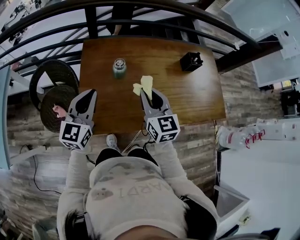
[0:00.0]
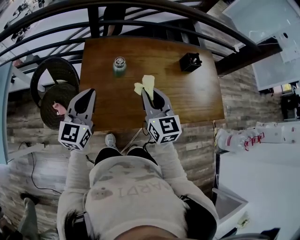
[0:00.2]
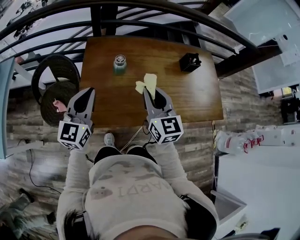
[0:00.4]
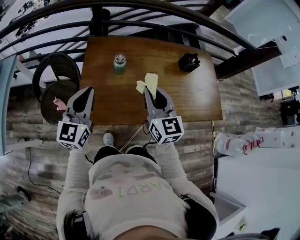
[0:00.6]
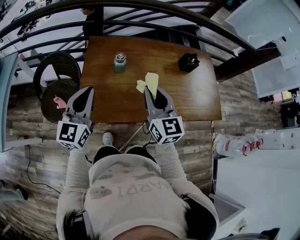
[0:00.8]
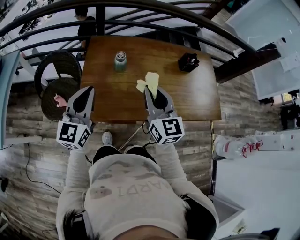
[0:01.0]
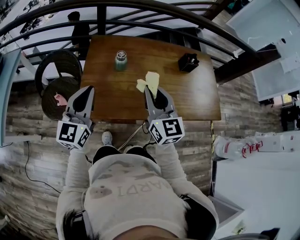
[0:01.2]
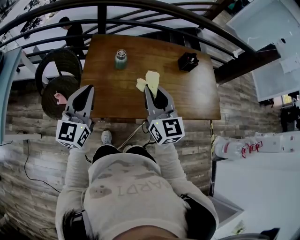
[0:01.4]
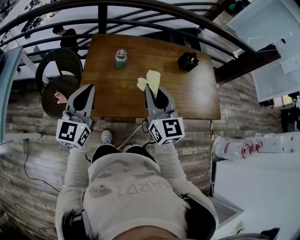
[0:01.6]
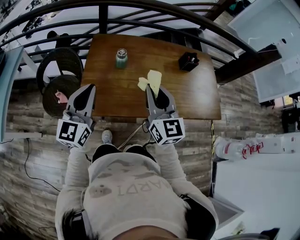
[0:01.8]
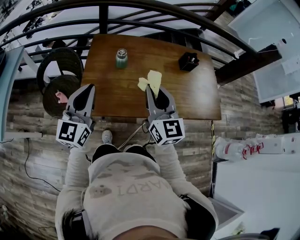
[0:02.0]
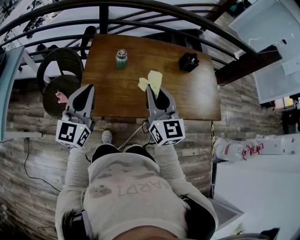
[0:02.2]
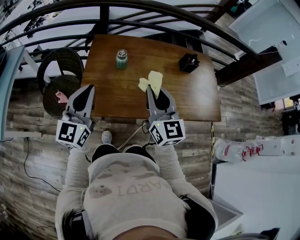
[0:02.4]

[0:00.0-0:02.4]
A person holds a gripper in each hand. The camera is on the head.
0.0 to 1.2 s: The left gripper travels backward by about 10 cm, while the right gripper shifts roughly 10 cm backward and upward.
1.2 to 2.4 s: There are only small adjustments of the grippers.

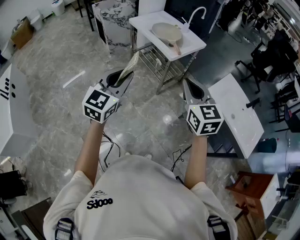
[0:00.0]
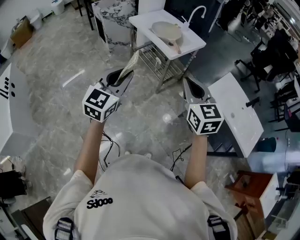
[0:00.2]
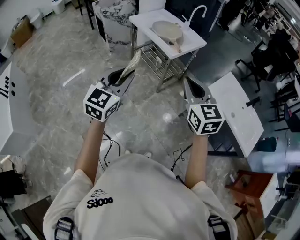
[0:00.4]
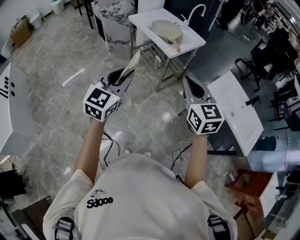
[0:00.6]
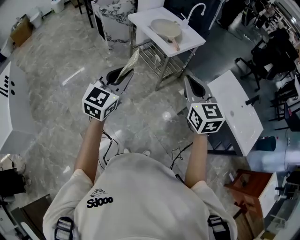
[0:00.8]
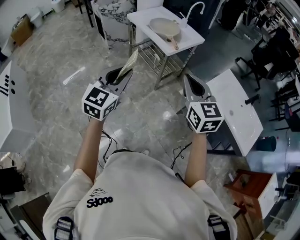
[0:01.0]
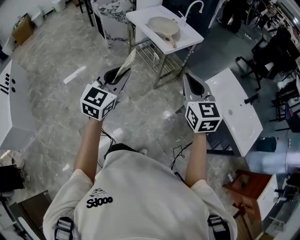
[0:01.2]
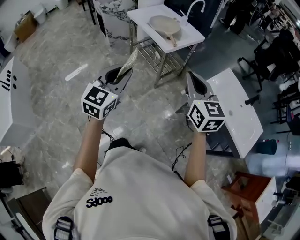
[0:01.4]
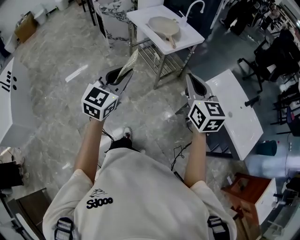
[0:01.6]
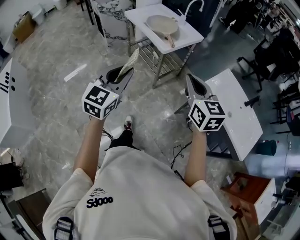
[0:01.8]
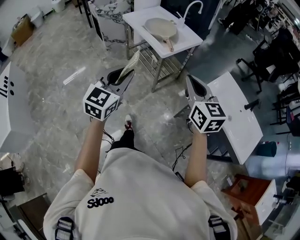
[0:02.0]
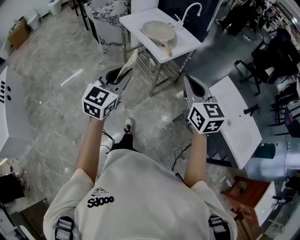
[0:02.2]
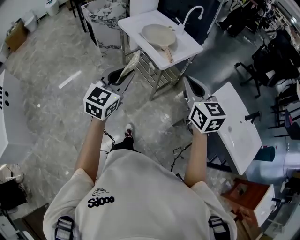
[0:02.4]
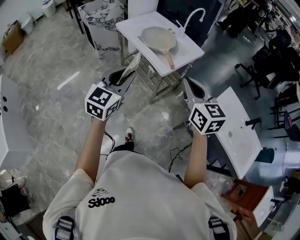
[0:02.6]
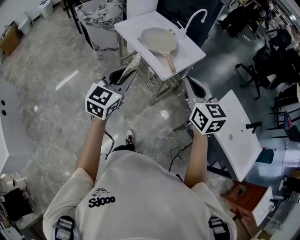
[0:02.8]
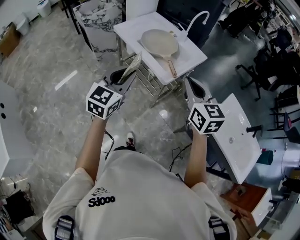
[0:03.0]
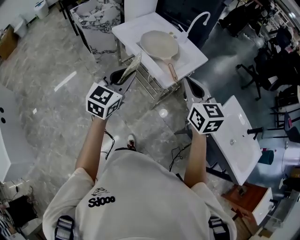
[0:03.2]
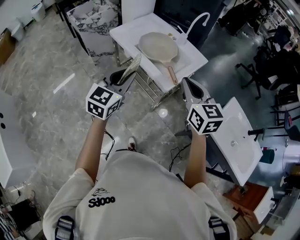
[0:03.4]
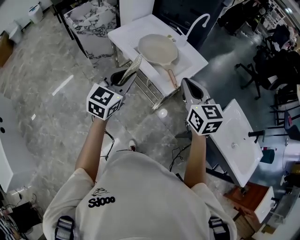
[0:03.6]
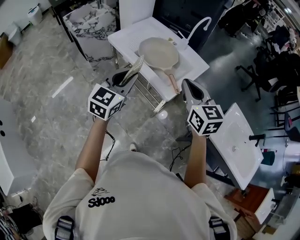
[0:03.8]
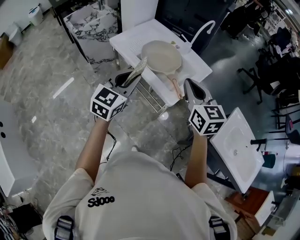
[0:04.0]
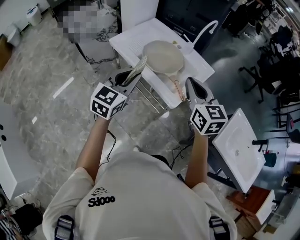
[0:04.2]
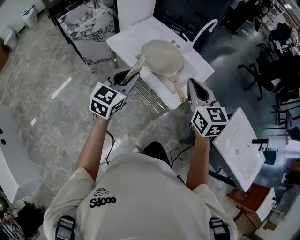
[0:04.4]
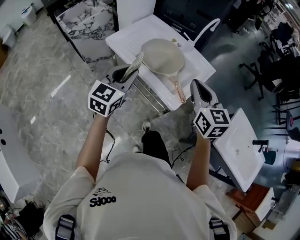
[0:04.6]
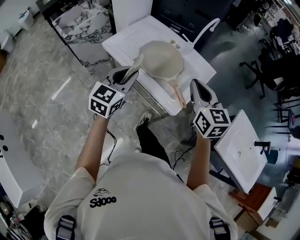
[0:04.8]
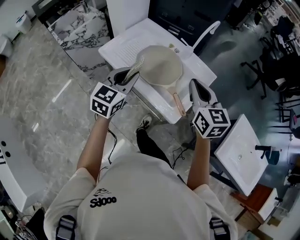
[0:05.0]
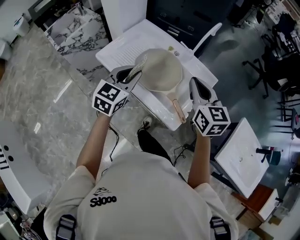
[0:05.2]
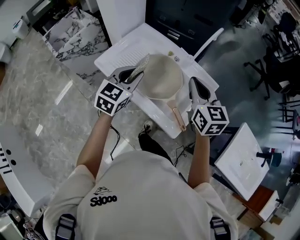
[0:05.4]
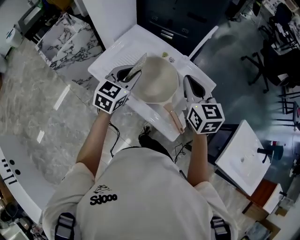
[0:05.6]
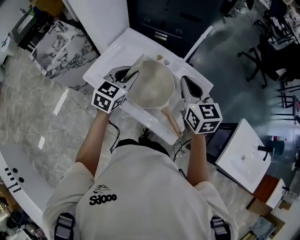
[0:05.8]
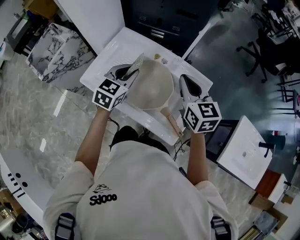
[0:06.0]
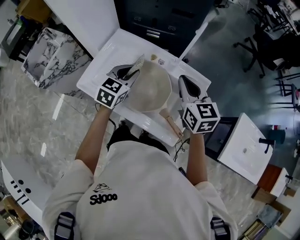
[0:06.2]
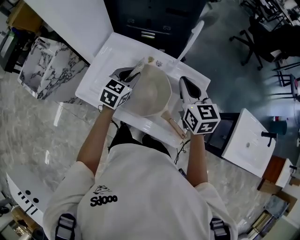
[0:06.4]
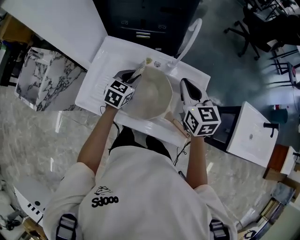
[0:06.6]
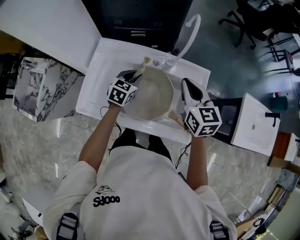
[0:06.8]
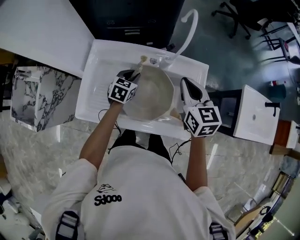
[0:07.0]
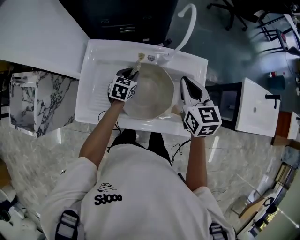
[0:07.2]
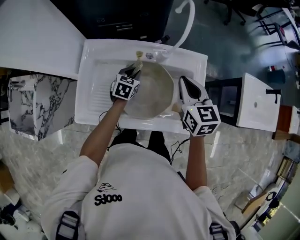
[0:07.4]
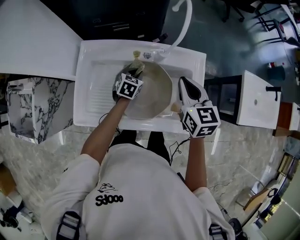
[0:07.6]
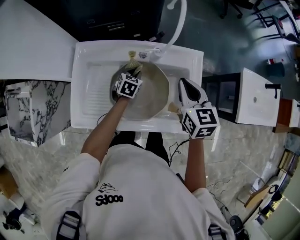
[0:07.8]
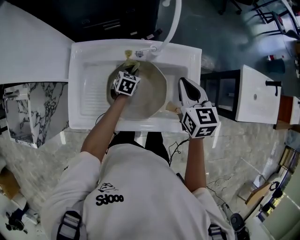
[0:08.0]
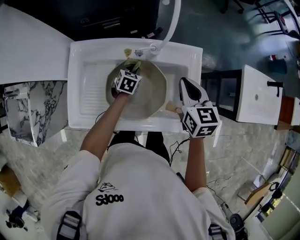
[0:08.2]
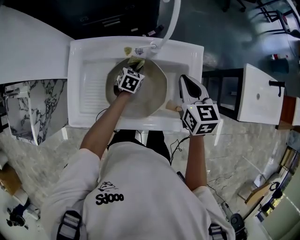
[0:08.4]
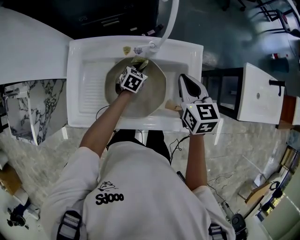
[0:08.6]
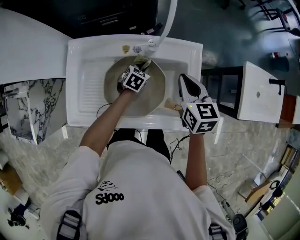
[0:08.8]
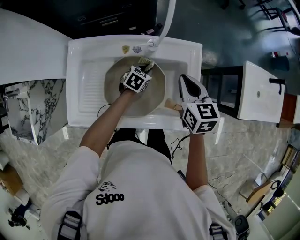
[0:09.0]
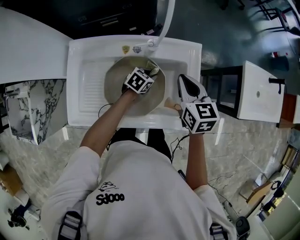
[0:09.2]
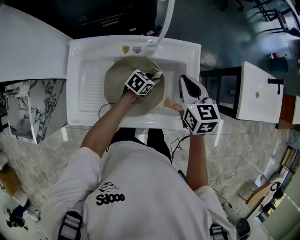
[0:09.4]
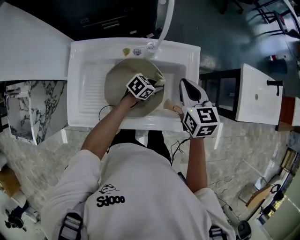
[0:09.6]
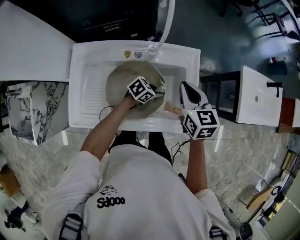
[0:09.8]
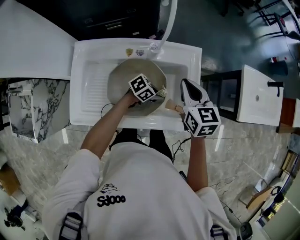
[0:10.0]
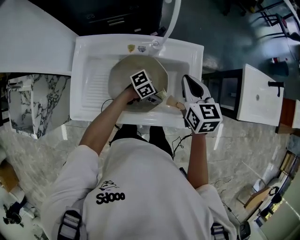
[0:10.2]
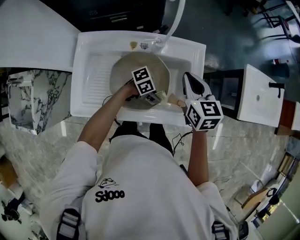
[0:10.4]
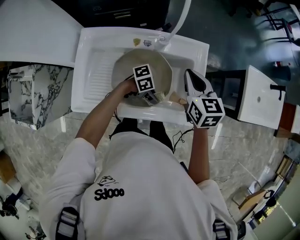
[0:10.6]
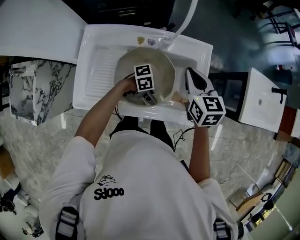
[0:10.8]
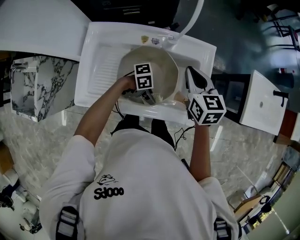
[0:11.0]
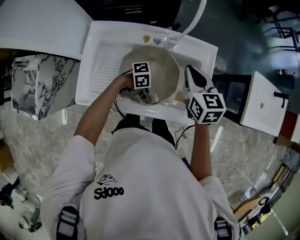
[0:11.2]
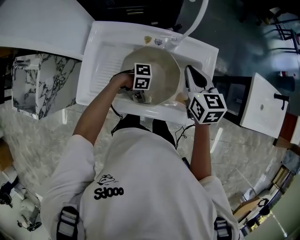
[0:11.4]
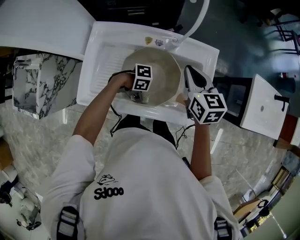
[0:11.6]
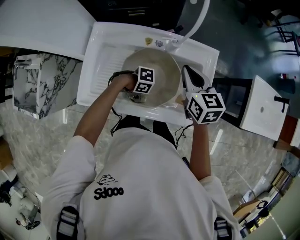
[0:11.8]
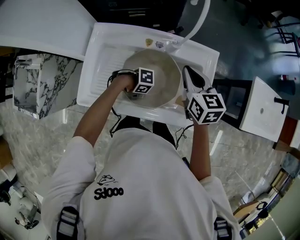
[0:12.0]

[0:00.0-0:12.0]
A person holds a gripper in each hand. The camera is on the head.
0.0 to 1.6 s: Both grippers travel together to the right, some 5 cm.
1.6 to 3.0 s: The two grippers go roughly 25 cm forward.
3.0 to 4.4 s: The grippers both shift forward by roughly 20 cm.
4.4 to 6.0 s: Both grippers travel together forward, some 25 cm.
6.0 to 7.6 s: The right gripper travels downward by roughly 5 cm, and swivels approximately 30 degrees, while the left gripper is displaced downward by roughly 25 cm, and turns by about 30 degrees.
7.6 to 9.0 s: The left gripper moves to the right, roughly 10 cm. Meanwhile the right gripper moves roughly 5 cm.
9.0 to 10.4 s: The left gripper changes place by some 20 cm, and turns by about 60 degrees.
10.4 to 12.0 s: The left gripper ends up roughly 15 cm from where it was, and changes its angle by roughly 40 degrees; the right gripper shifts by about 5 cm.

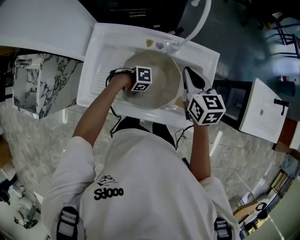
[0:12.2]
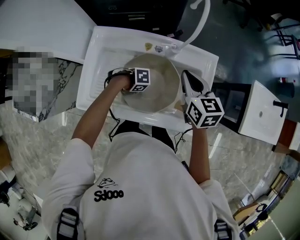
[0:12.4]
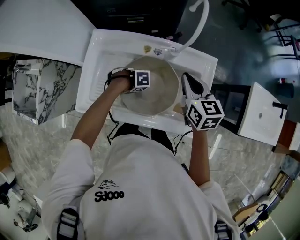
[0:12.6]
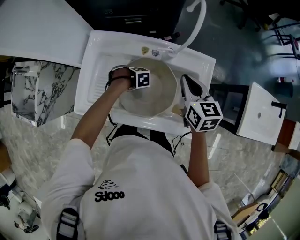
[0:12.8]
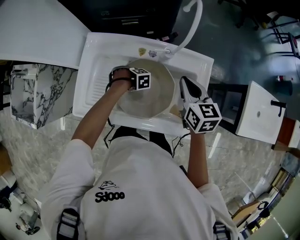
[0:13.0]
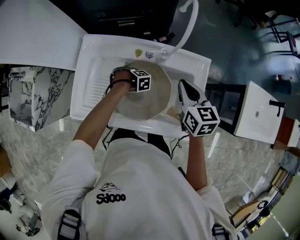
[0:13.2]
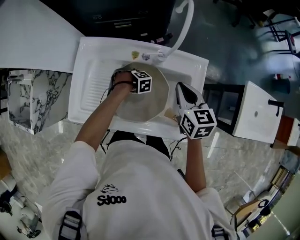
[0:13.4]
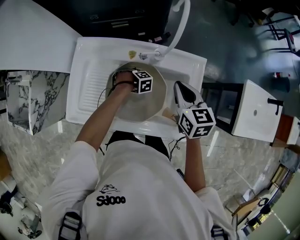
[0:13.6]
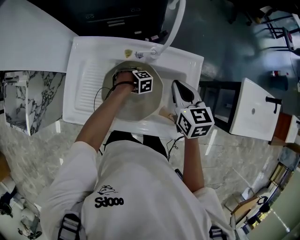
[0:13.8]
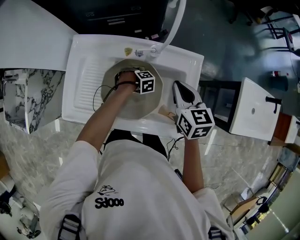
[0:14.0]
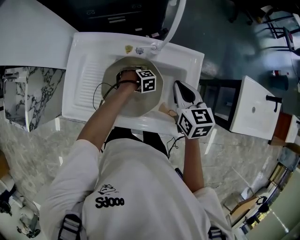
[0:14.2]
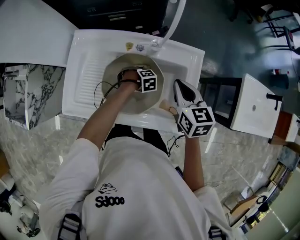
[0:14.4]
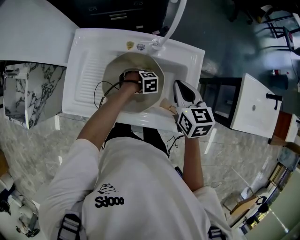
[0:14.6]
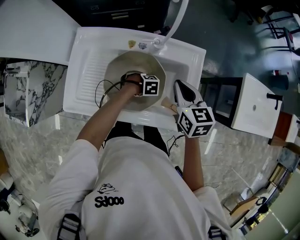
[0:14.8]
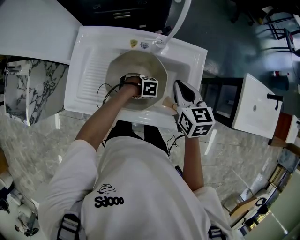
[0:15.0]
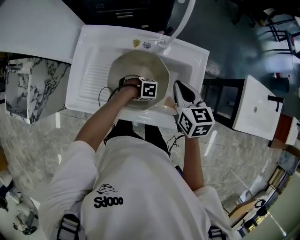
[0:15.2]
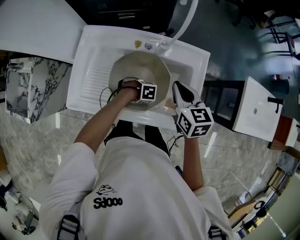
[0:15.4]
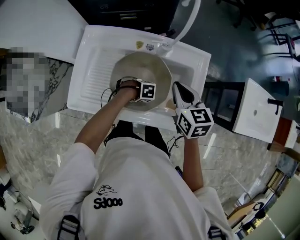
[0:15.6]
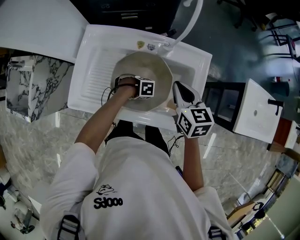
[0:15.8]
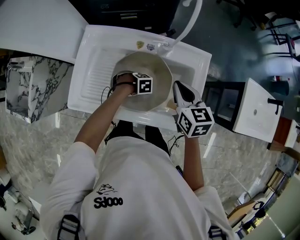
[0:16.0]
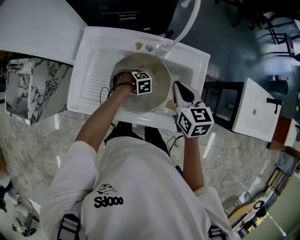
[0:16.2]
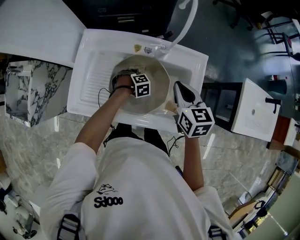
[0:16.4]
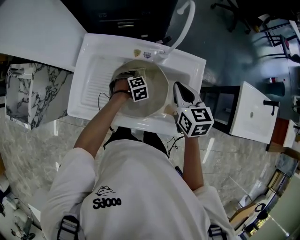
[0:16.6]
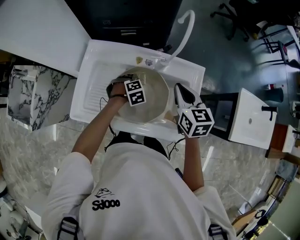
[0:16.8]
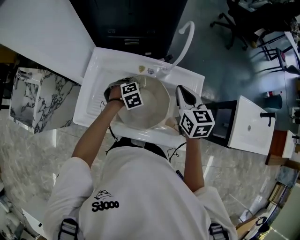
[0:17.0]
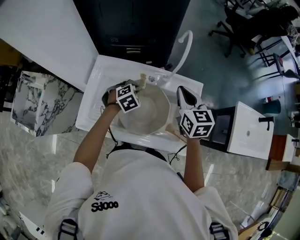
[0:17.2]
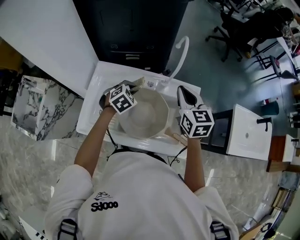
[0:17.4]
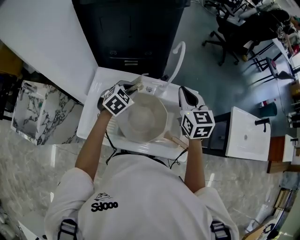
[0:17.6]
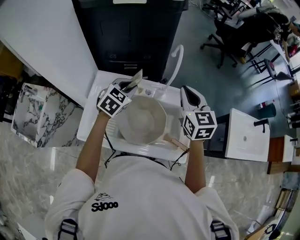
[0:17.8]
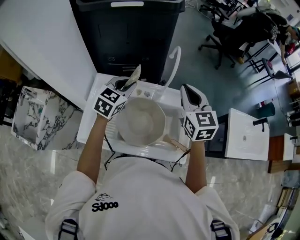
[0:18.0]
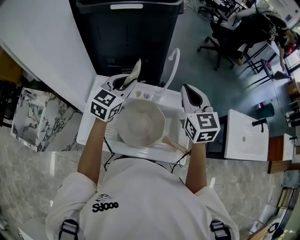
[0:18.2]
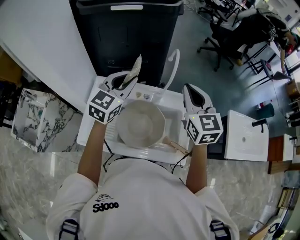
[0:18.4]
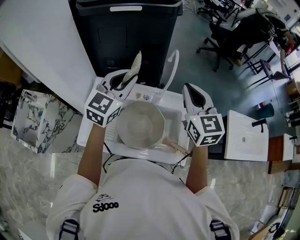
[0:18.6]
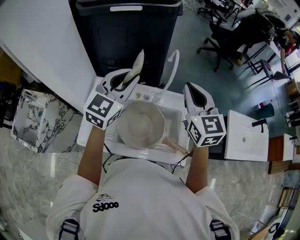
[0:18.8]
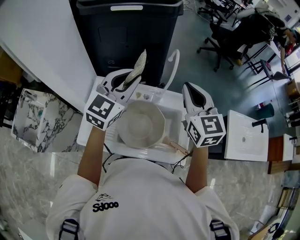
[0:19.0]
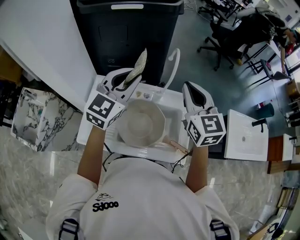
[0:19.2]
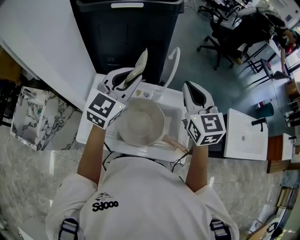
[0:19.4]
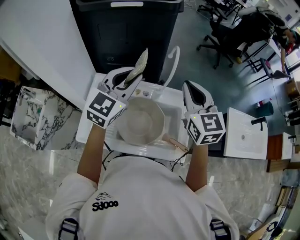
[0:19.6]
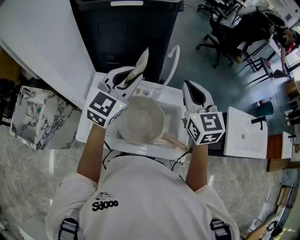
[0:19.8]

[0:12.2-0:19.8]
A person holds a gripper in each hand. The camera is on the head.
12.2 to 13.8 s: The left gripper shifts by some 15 cm, and angles its fingers downward, by some 30 degrees.
13.8 to 15.2 s: The left gripper changes place by about 15 cm, and swivels approximately 30 degrees.
15.2 to 16.8 s: The left gripper ends up some 15 cm from where it was, and swivels some 40 degrees; the right gripper shifts by some 5 cm.
16.8 to 18.2 s: The left gripper shifts roughly 30 cm upward, and points its fingers roughly 60 degrees further upward, while the right gripper is displaced upward by some 15 cm, and changes its angle by approximately 20 degrees.
18.2 to 19.8 s: The left gripper moves upward, some 10 cm.

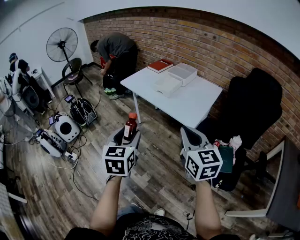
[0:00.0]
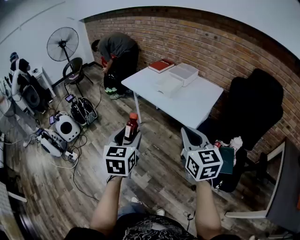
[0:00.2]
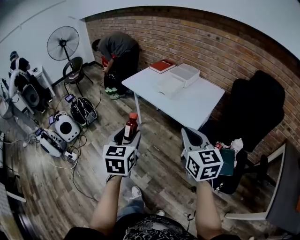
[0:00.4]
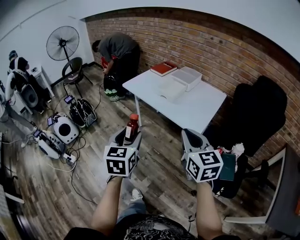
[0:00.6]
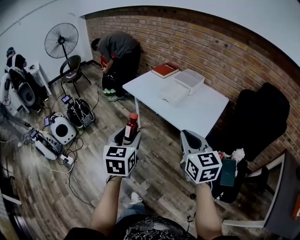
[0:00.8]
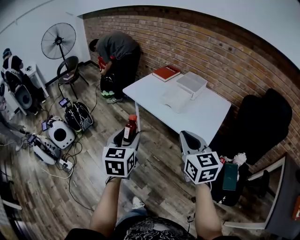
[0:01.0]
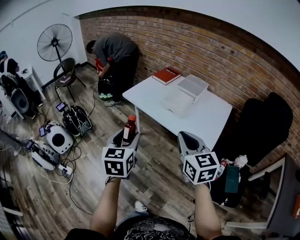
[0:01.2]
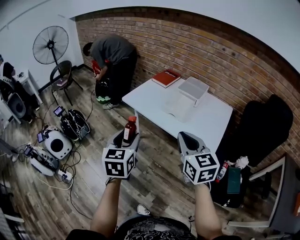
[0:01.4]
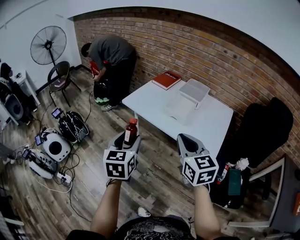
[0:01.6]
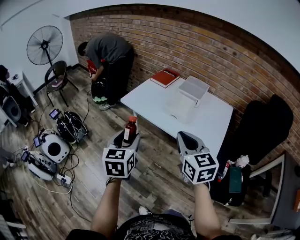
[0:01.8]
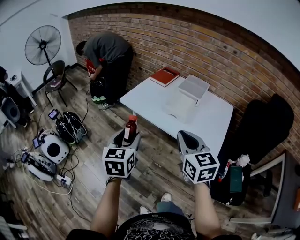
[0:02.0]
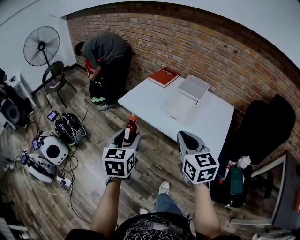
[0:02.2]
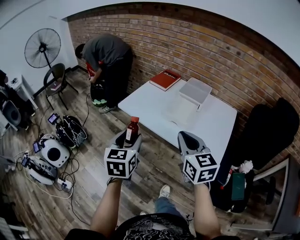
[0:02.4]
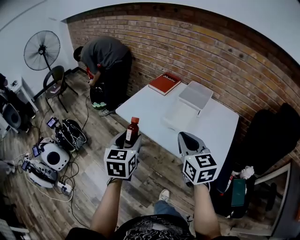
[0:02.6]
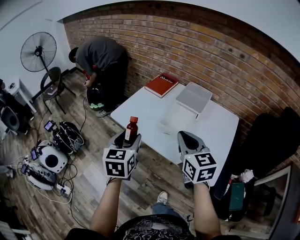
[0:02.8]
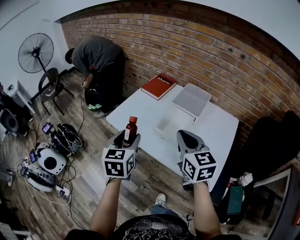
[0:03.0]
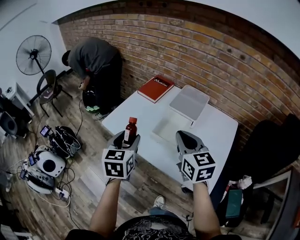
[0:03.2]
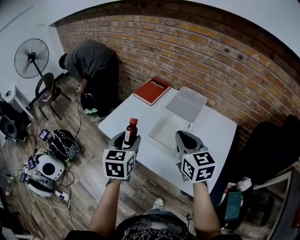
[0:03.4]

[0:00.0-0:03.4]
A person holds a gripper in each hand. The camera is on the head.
0.0 to 1.6 s: Both grippers move forward and to the left, some 30 cm.
1.6 to 3.4 s: Both grippers move forward and to the right, approximately 30 cm.
